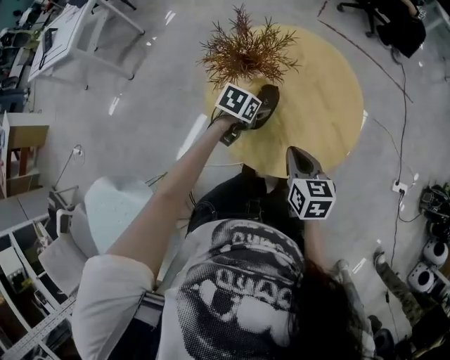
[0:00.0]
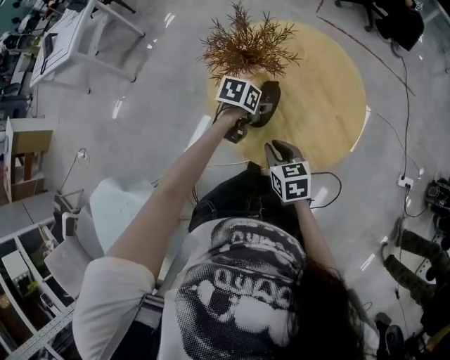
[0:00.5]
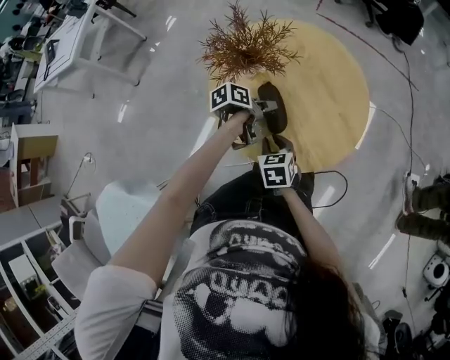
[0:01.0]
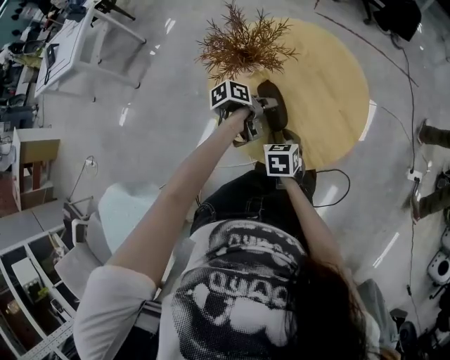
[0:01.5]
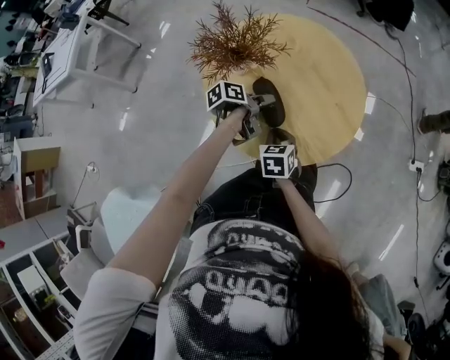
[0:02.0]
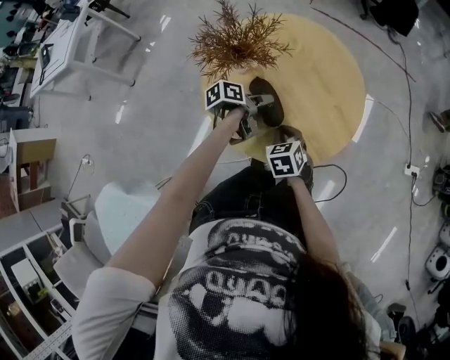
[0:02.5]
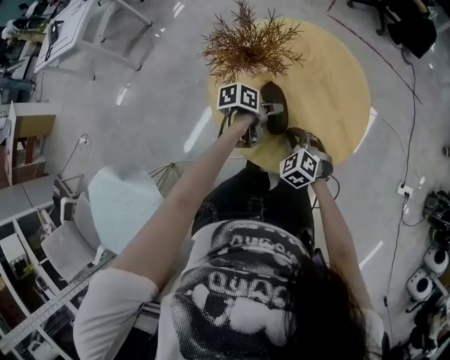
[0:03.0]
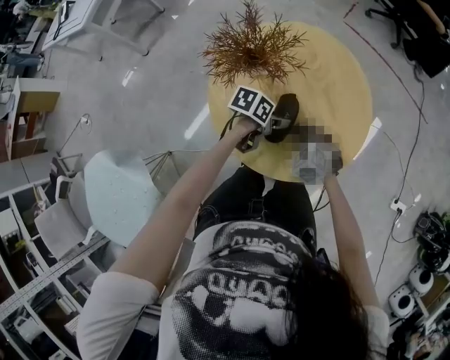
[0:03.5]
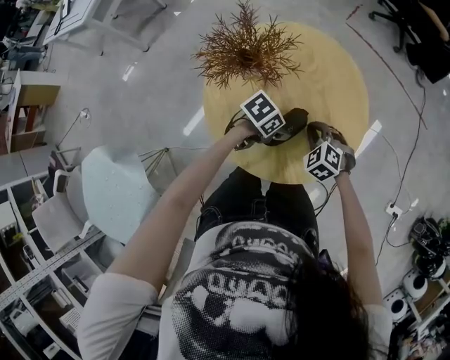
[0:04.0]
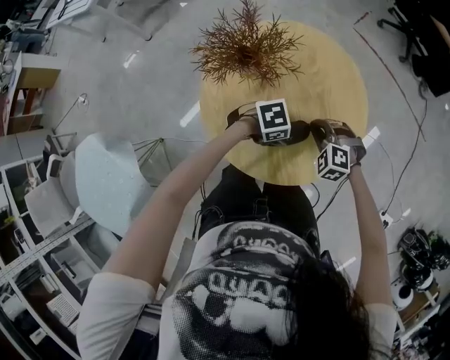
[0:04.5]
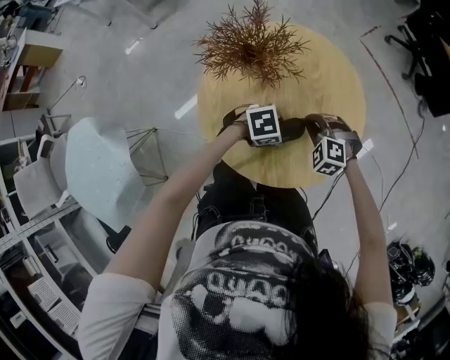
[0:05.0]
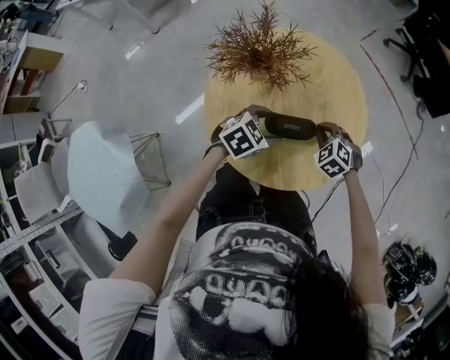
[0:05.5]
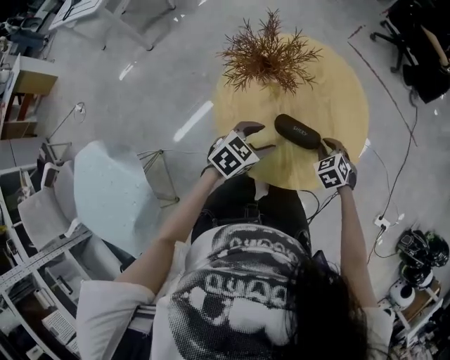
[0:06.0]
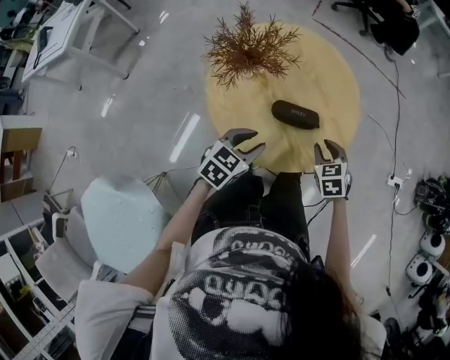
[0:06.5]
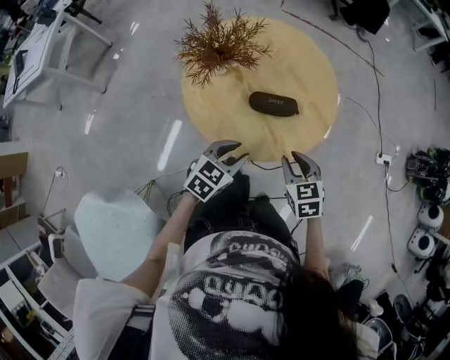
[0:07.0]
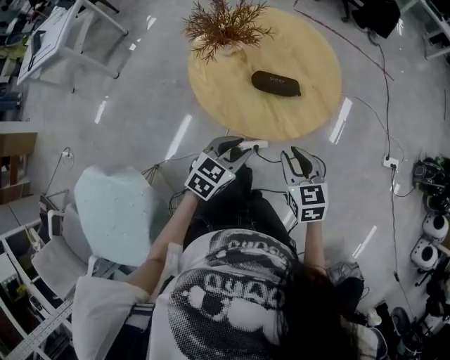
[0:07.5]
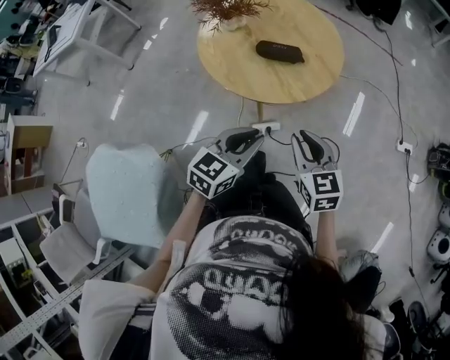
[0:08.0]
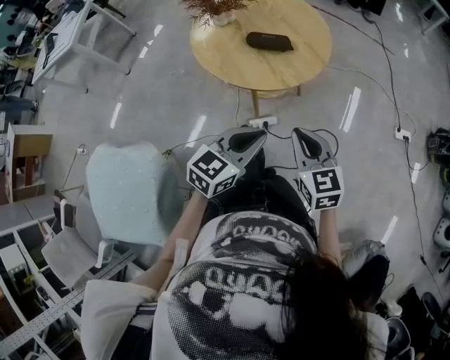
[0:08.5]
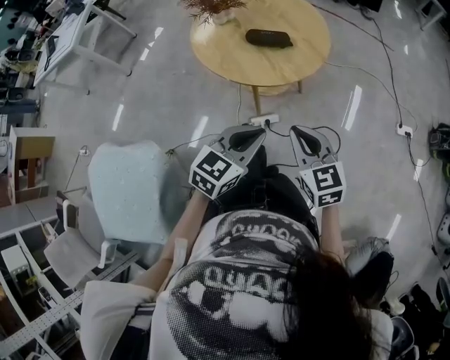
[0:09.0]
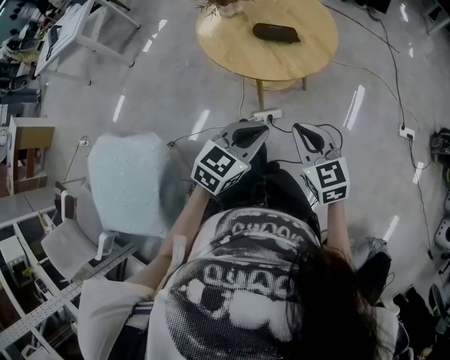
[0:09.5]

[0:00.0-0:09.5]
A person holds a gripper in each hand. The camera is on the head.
0:00.0 to 0:02.0: The left gripper rotates around the line of its fingers by about 50 degrees, counterclockwise from behind. The right gripper shifts about 15 cm downward and to the left, and opens, then closes once more.
0:02.0 to 0:04.0: The right gripper goes some 15 cm forward and to the right, and rolls counterclockwise, seen from behind, by some 70 degrees. Meanwhile the left gripper travels to the right by approximately 10 cm, and rolls clockwise, seen from behind, by about 50 degrees.
0:04.0 to 0:05.5: The left gripper moves some 5 cm, and turns by roughly 30 degrees; the right gripper changes place by about 5 cm.
0:05.5 to 0:07.5: The right gripper is displaced backward and upward by approximately 30 cm, rolls clockwise, seen from behind, by roughly 60 degrees, and opens up, while the left gripper moves backward, roughly 20 cm, and closes up.
0:07.5 to 0:09.5: The left gripper is displaced backward, upward and to the right by some 20 cm, and closes, while the right gripper goes some 15 cm backward, and closes up.

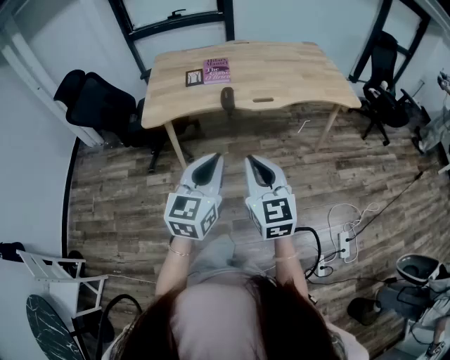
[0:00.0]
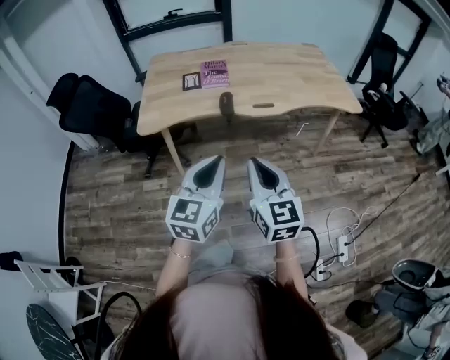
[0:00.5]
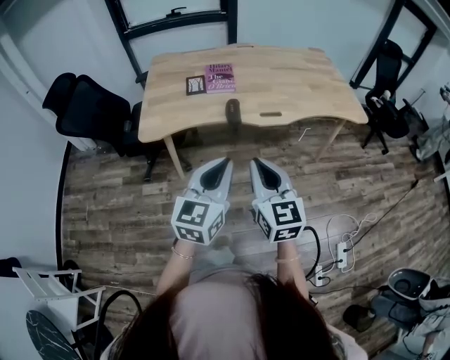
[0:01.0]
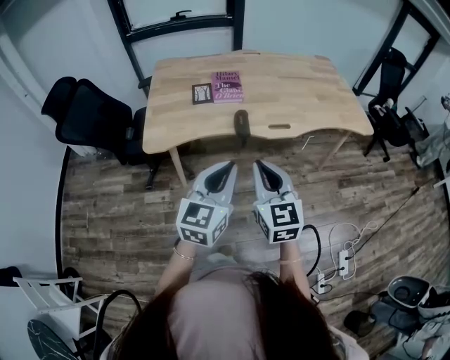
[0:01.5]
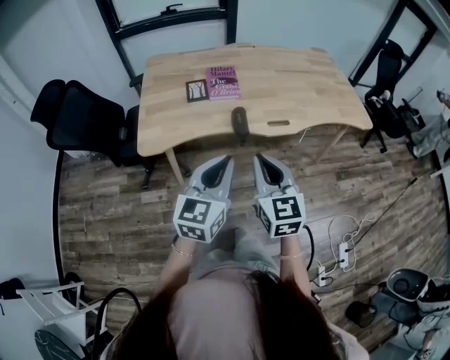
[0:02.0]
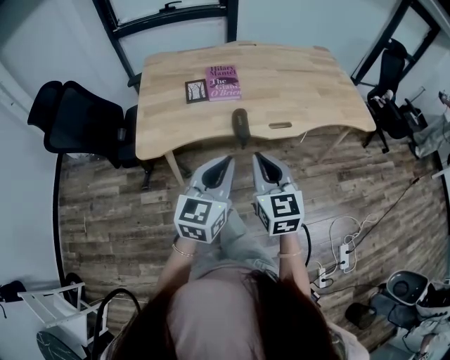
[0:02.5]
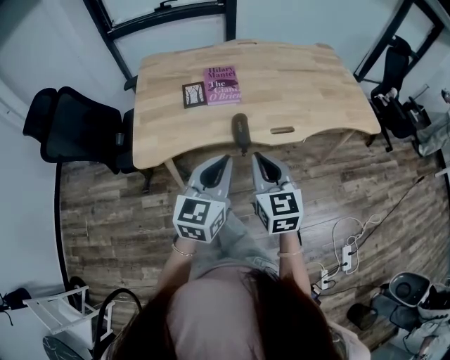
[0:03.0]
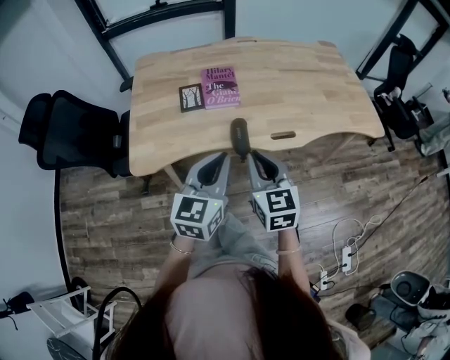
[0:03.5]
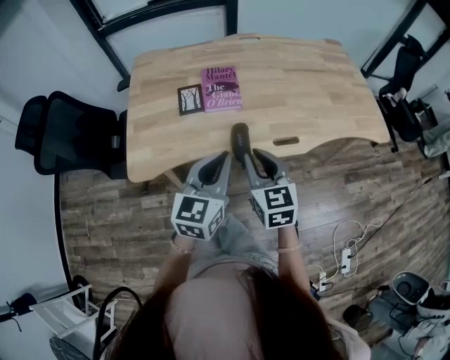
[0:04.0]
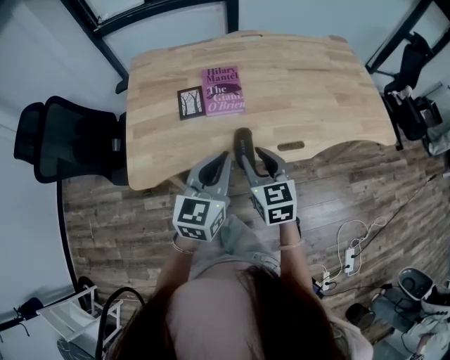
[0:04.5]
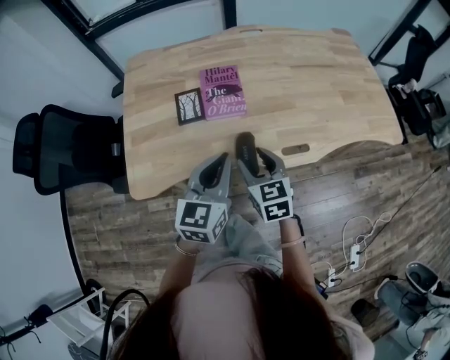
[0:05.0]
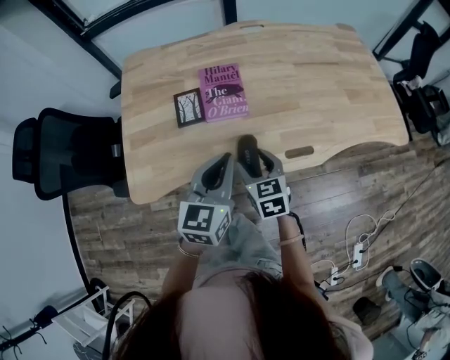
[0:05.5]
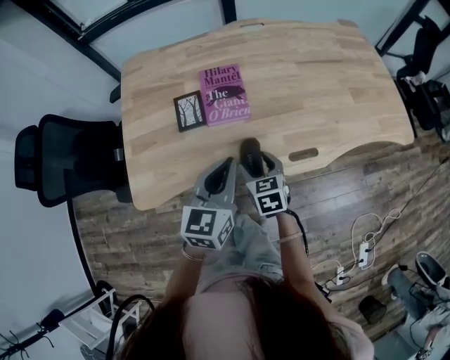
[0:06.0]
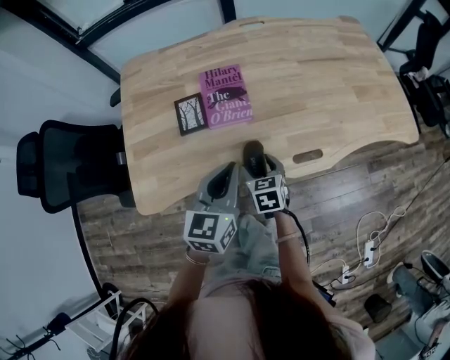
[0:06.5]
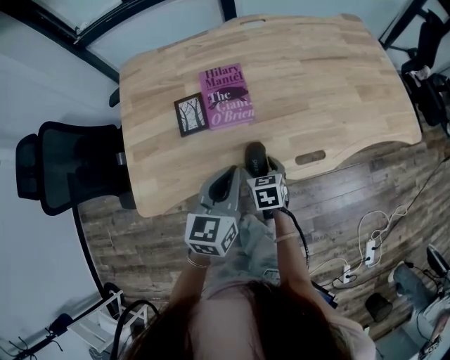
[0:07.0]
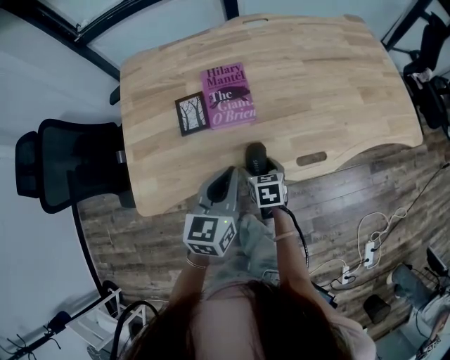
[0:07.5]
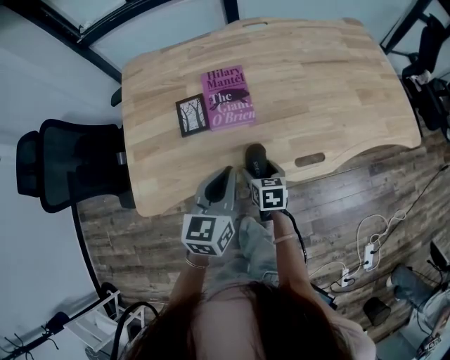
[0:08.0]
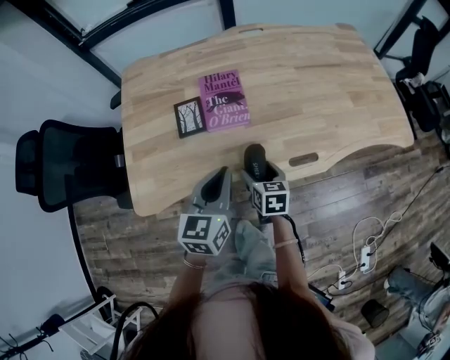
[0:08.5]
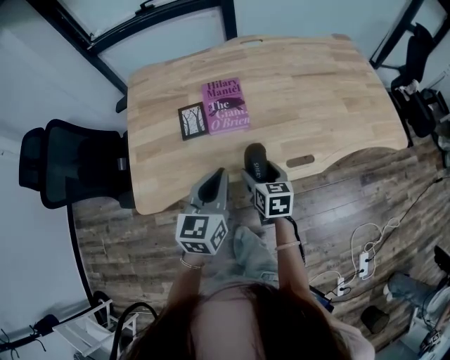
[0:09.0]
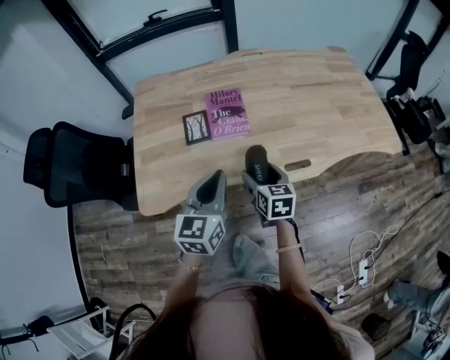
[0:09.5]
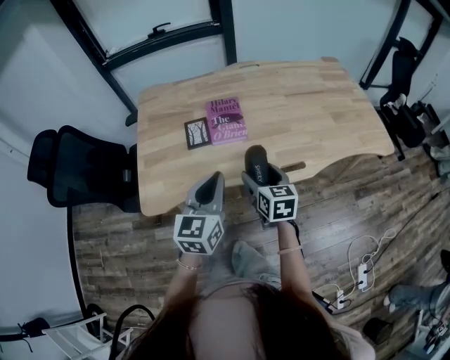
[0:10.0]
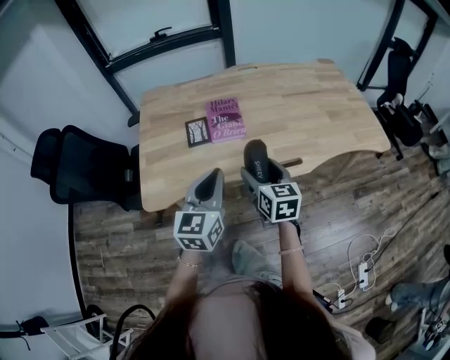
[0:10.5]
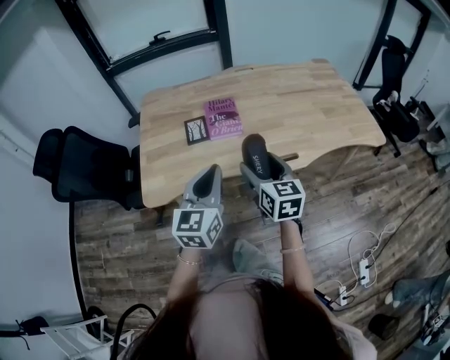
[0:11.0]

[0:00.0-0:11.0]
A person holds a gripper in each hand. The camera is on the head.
0:00.0 to 0:02.0: Both grippers travel together forward and to the left, roughly 25 cm.
0:02.0 to 0:03.5: Both grippers move forward, some 15 cm.
0:03.5 to 0:05.5: The left gripper goes some 15 cm forward. The right gripper is displaced forward and downward by roughly 25 cm, and opens up.
0:05.5 to 0:07.5: The right gripper moves downward, about 15 cm, and swivels about 20 degrees. The left gripper moves downward, approximately 5 cm.
0:07.5 to 0:09.0: The right gripper travels upward by some 10 cm; the left gripper ends up about 5 cm from where it was.
0:09.0 to 0:11.0: The right gripper travels upward and backward by roughly 20 cm, and swivels some 20 degrees. Meanwhile the left gripper is displaced backward and upward by about 15 cm.

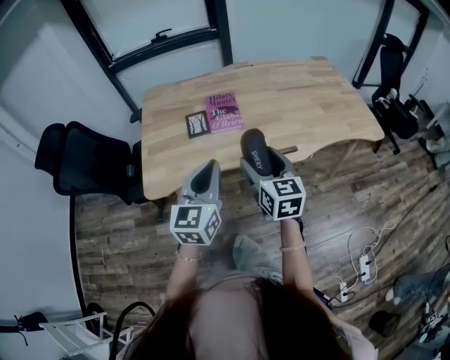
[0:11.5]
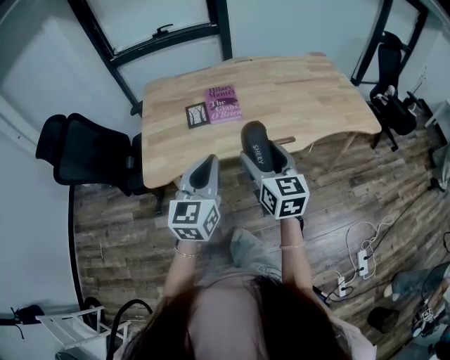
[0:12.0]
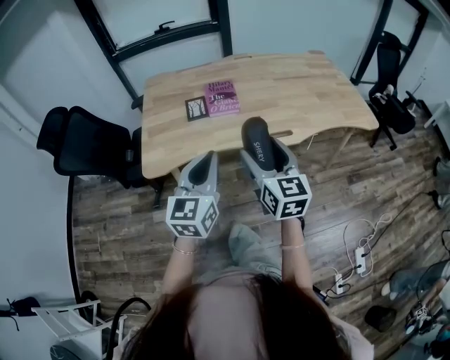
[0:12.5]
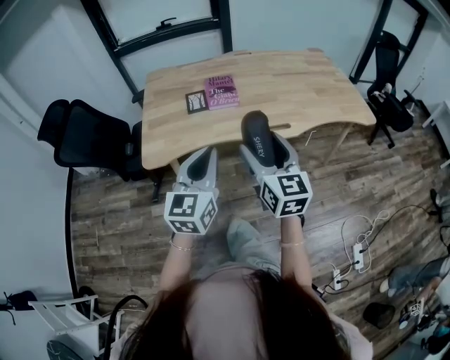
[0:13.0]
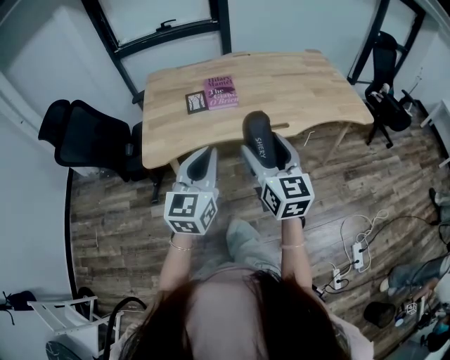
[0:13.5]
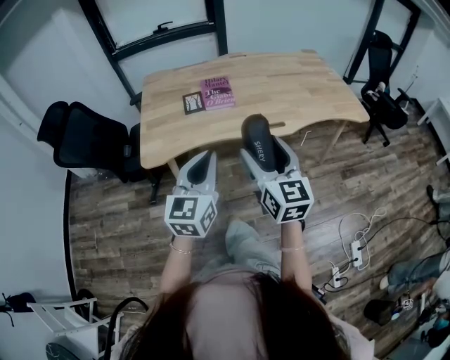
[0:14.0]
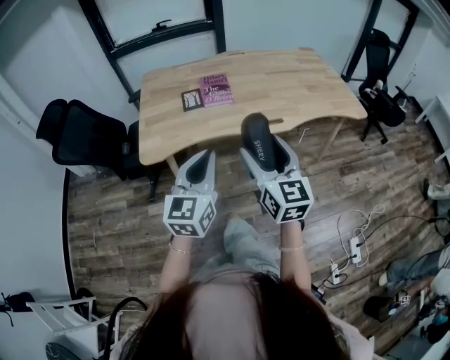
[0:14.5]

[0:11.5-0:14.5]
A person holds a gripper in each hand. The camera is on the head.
0:11.5 to 0:13.0: The right gripper is displaced backward and upward by approximately 15 cm. Meanwhile the left gripper travels backward by some 10 cm.
0:13.0 to 0:14.5: The right gripper moves backward, approximately 5 cm.

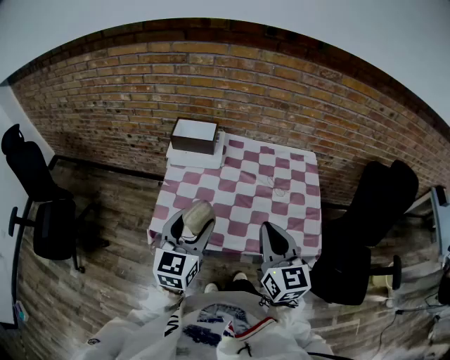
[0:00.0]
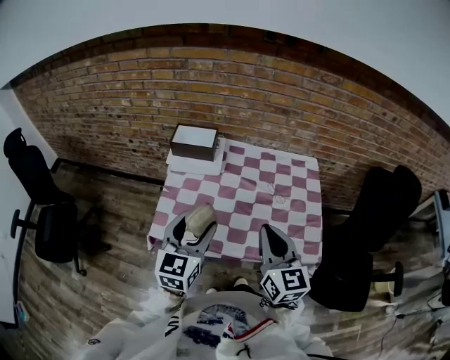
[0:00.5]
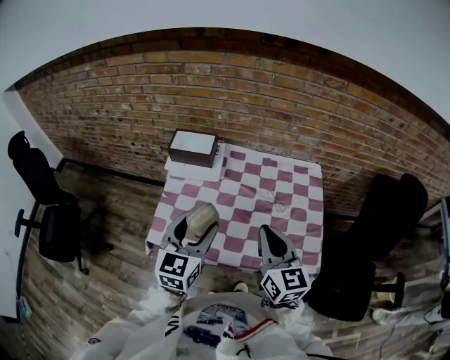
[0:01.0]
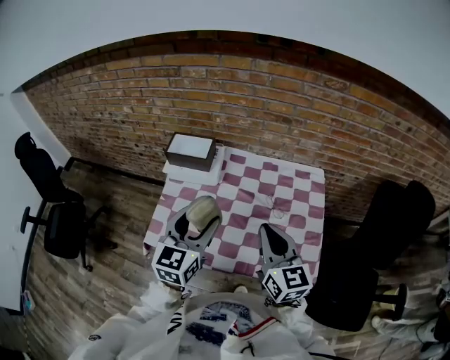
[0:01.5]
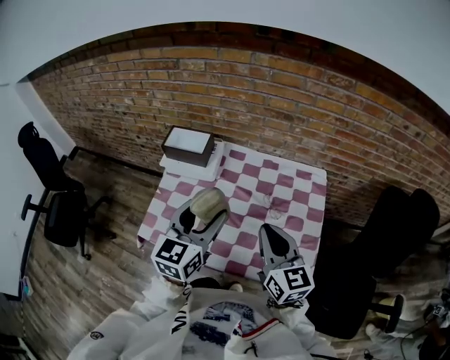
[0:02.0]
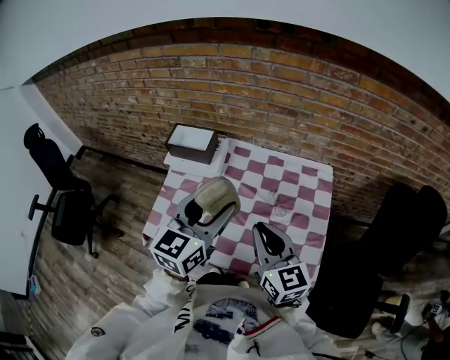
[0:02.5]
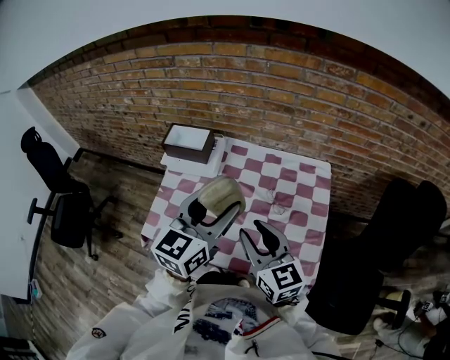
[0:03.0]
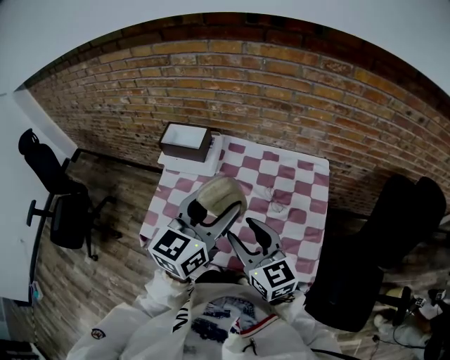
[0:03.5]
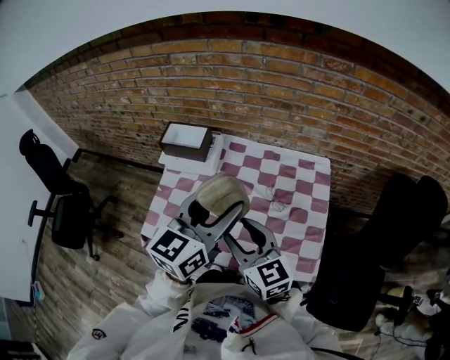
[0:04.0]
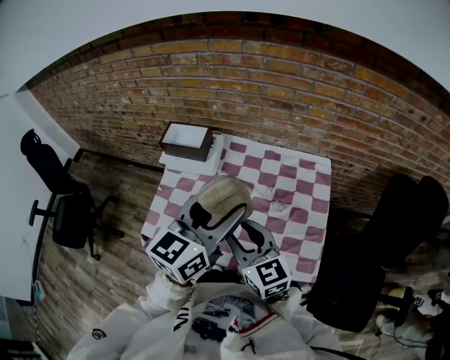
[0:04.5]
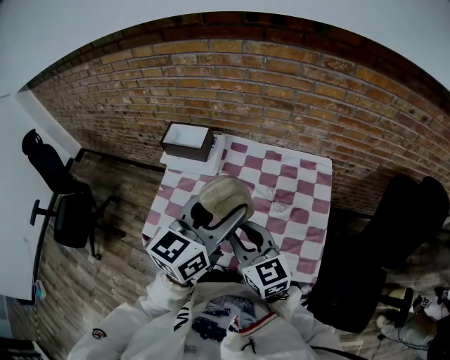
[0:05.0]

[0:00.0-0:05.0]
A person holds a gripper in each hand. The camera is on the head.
0:00.0 to 0:02.5: The right gripper is displaced forward and to the right by some 15 cm. Meanwhile the left gripper travels to the right, forward and upward by approximately 20 cm.
0:02.5 to 0:05.0: The right gripper moves to the left, roughly 5 cm, and opens and closes again; the left gripper moves approximately 5 cm.
